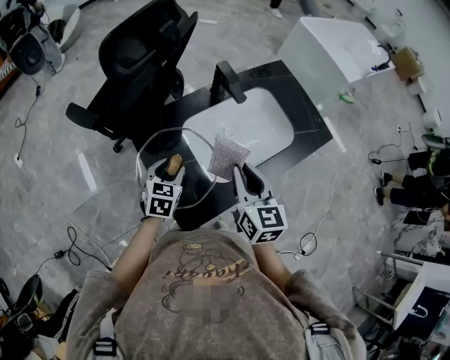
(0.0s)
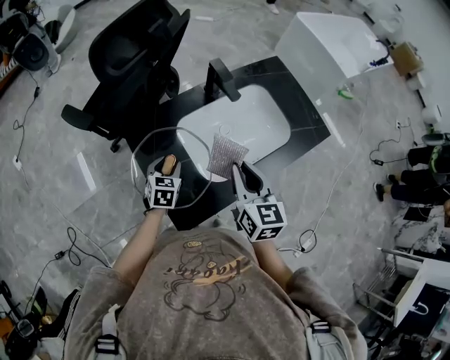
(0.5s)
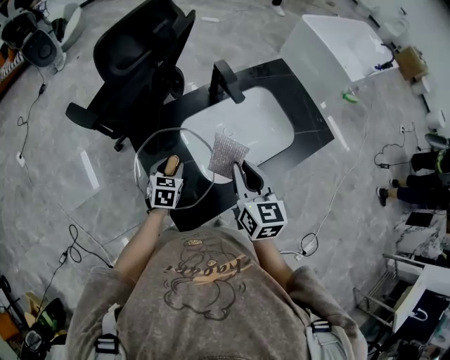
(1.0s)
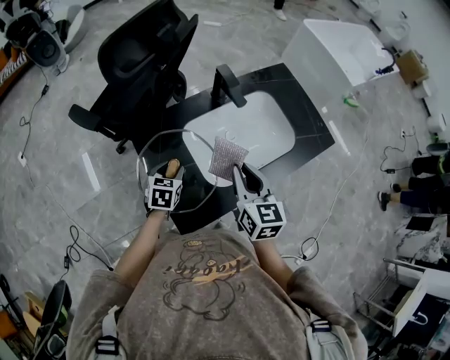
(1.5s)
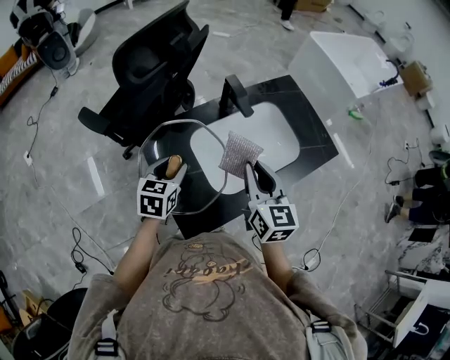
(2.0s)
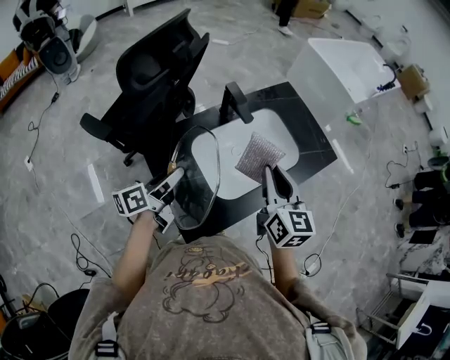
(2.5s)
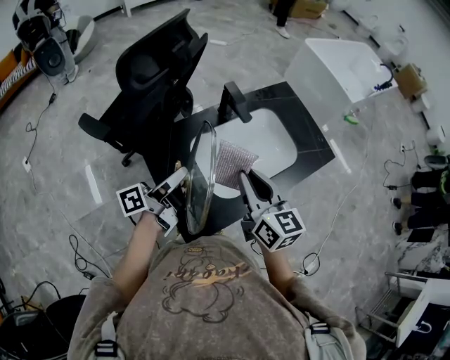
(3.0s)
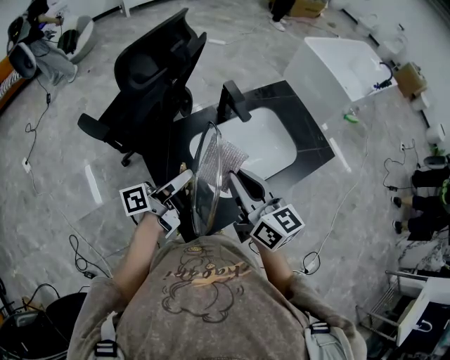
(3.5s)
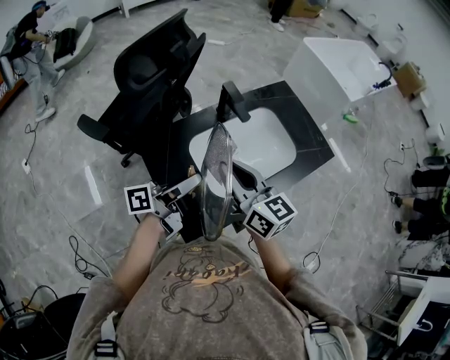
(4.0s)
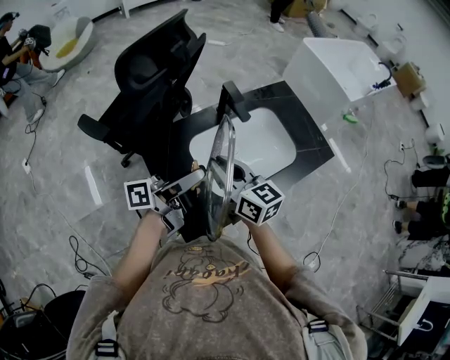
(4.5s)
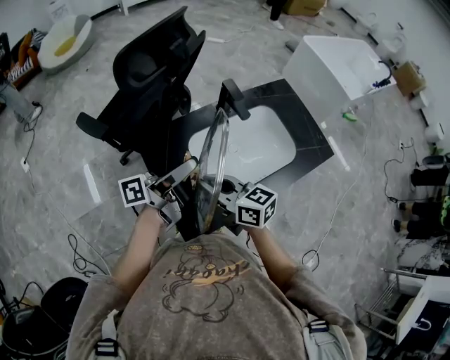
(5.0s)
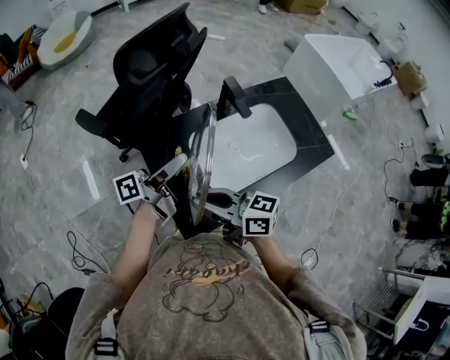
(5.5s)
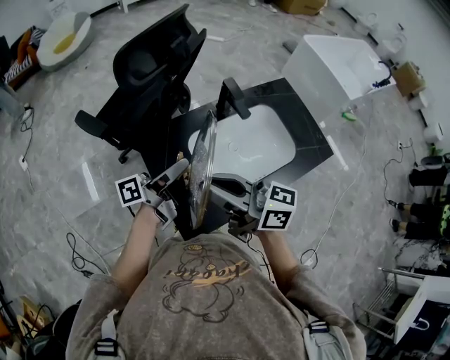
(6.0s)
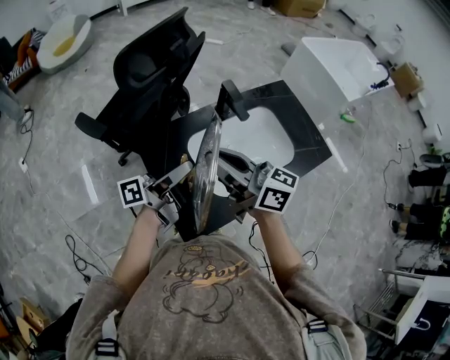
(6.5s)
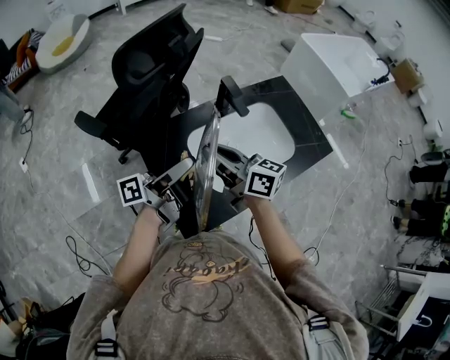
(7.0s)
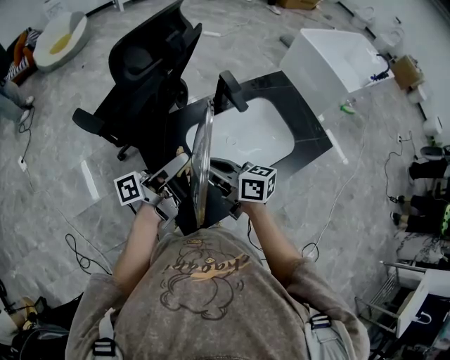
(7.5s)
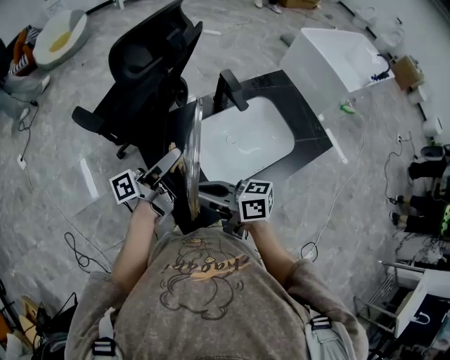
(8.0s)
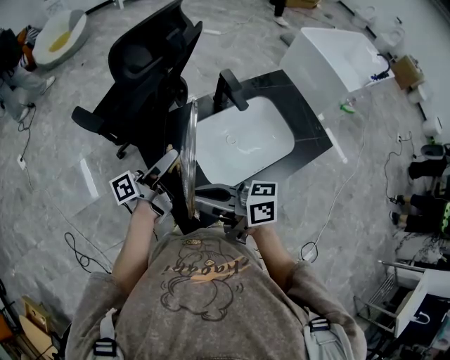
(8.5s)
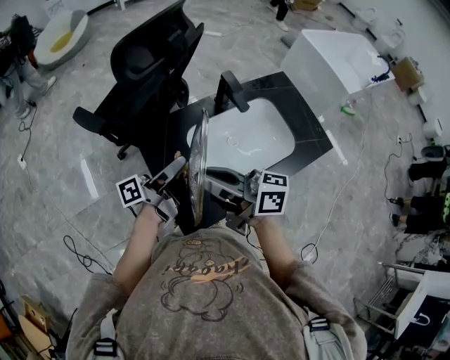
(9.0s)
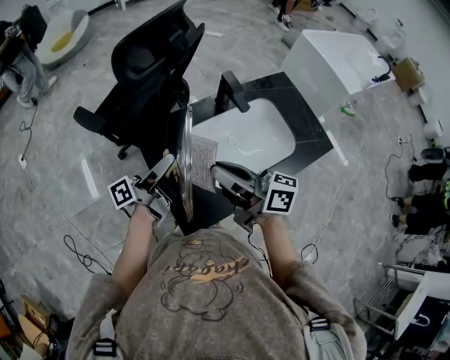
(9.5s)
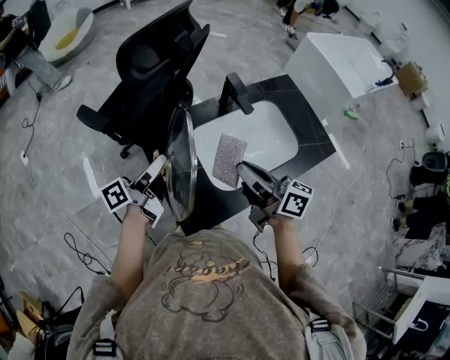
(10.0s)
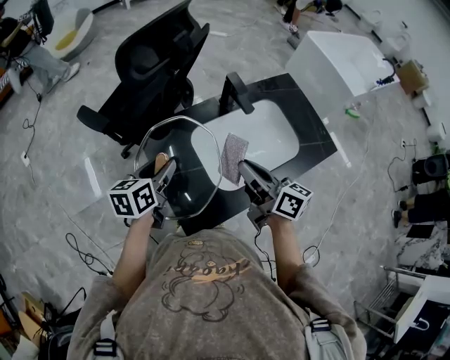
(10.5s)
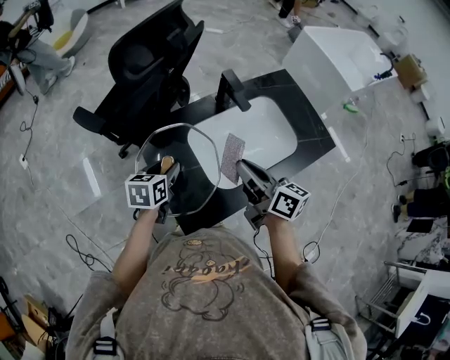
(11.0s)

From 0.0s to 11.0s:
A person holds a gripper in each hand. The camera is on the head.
From 0.0s to 2.0s: The left gripper travels upward by about 5 cm.
From 2.0s to 3.5s: The left gripper travels upward by approximately 10 cm, and points its fingers roughly 40 degrees further upward, while the right gripper moves upward, approximately 5 cm, and changes its angle by about 20 degrees.
From 3.5s to 5.5s: The right gripper moves to the left, backward and downward, some 10 cm, and turns by about 40 degrees.
From 5.5s to 7.5s: The right gripper travels forward by some 10 cm, and travels upward and back again, roughly 10 cm each way.
From 7.5s to 9.0s: The right gripper is displaced upward by some 10 cm.
From 9.0s to 11.0s: The right gripper moves to the right and downward, approximately 15 cm, and changes its angle by about 30 degrees. The left gripper travels downward by about 10 cm, and tilts its fingers approximately 50 degrees downward.

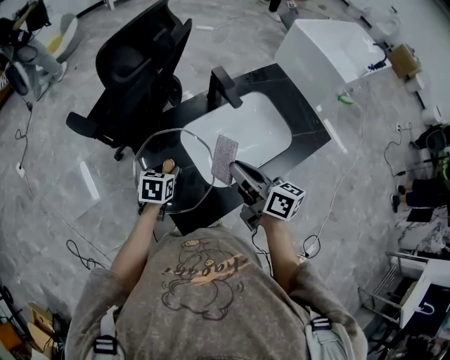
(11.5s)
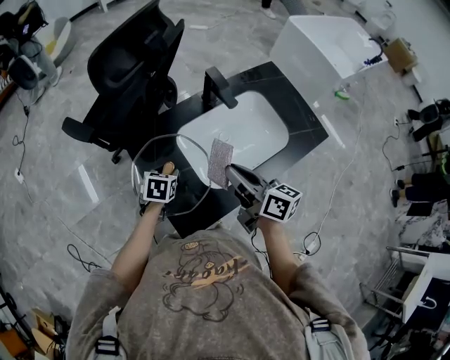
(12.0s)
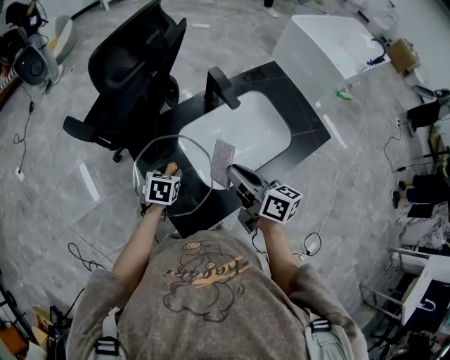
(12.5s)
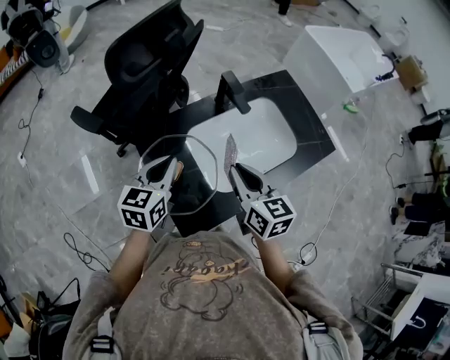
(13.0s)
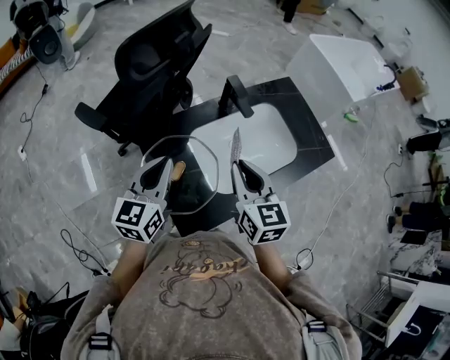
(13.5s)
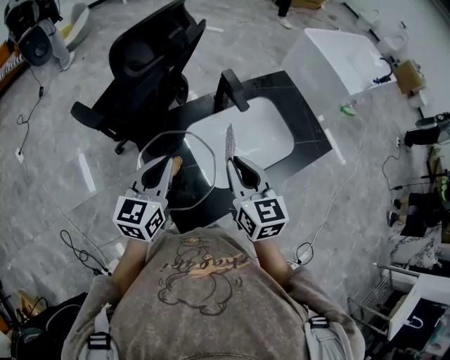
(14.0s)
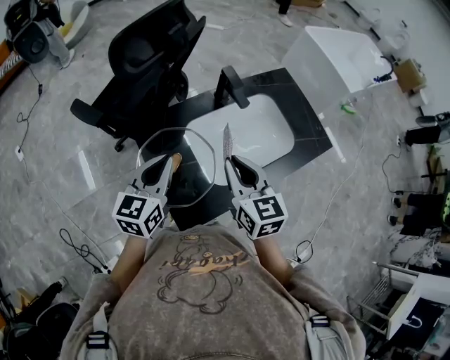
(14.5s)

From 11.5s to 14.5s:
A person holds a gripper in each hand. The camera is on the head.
From 11.5s to 13.0s: The left gripper shifts some 15 cm upward, changes its angle by some 30 degrees, and closes; the right gripper swivels approximately 30 degrees.
From 13.0s to 14.5s: The grippers make only small movements.

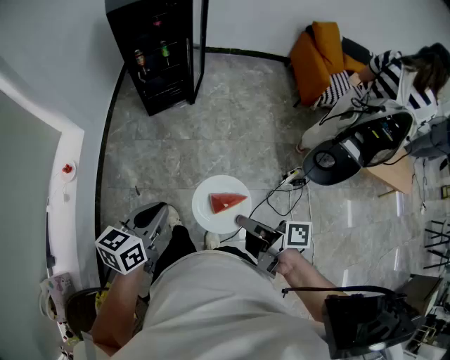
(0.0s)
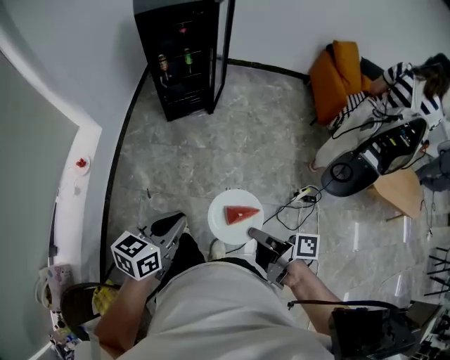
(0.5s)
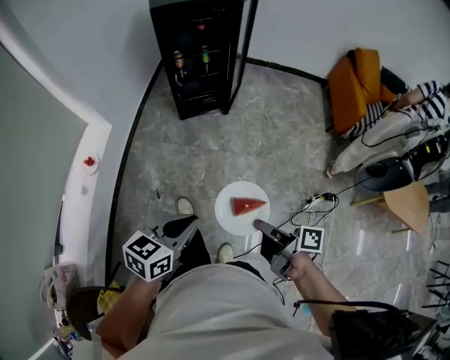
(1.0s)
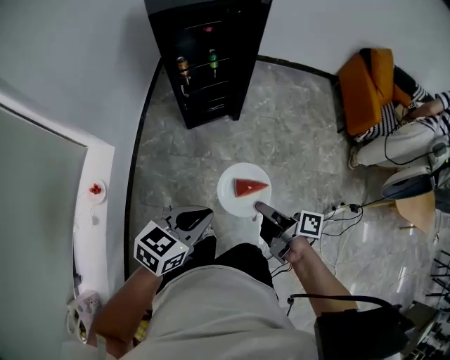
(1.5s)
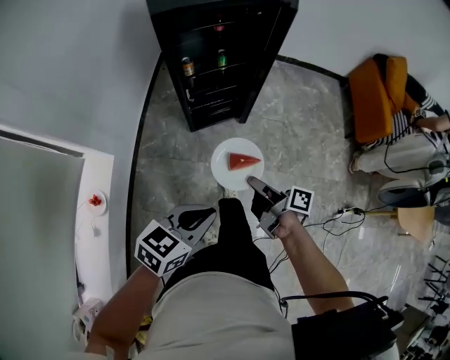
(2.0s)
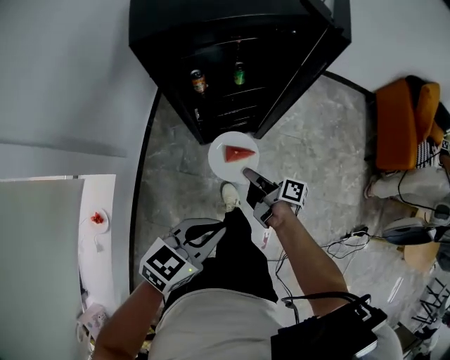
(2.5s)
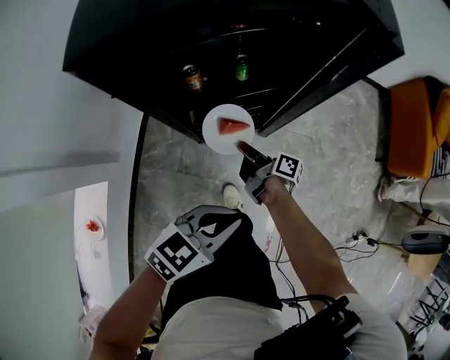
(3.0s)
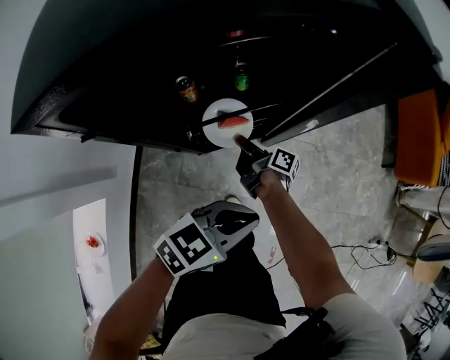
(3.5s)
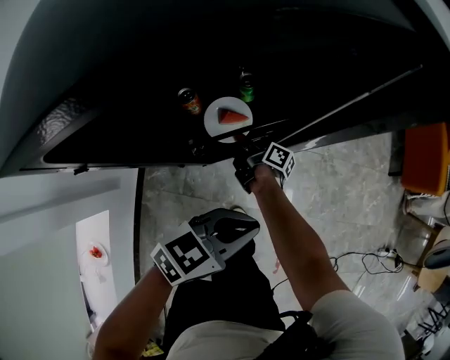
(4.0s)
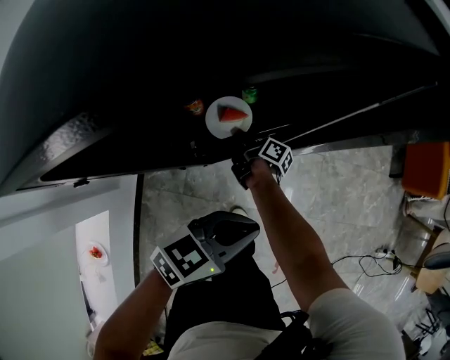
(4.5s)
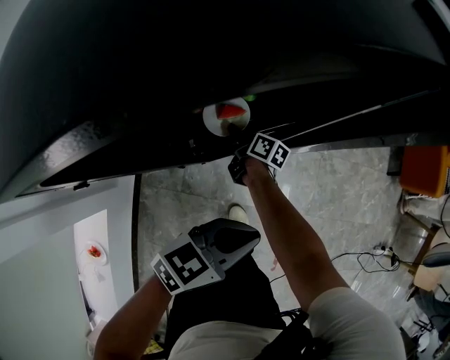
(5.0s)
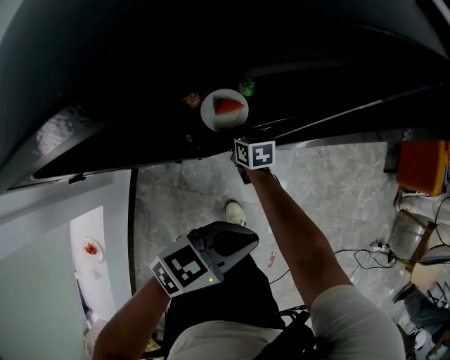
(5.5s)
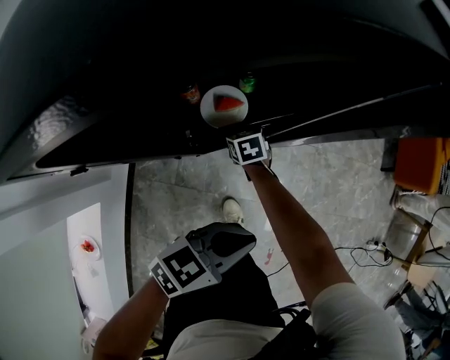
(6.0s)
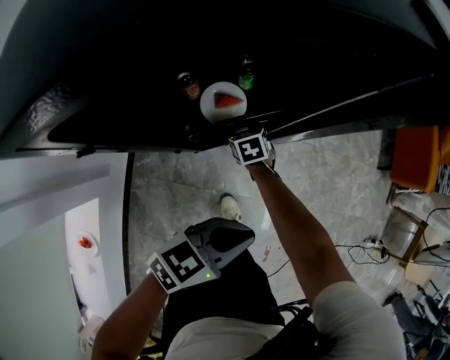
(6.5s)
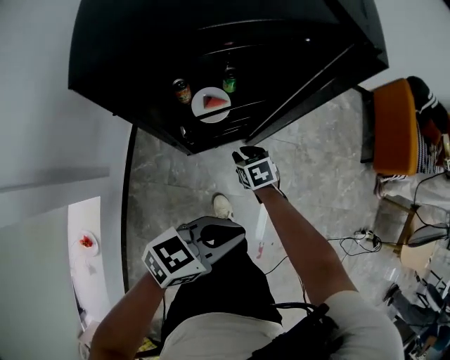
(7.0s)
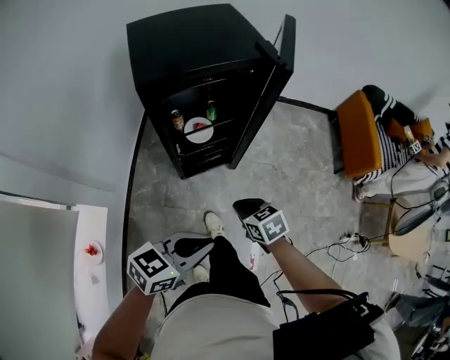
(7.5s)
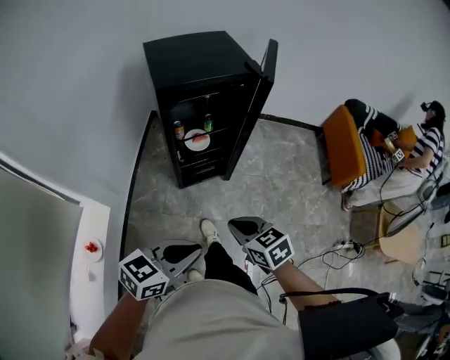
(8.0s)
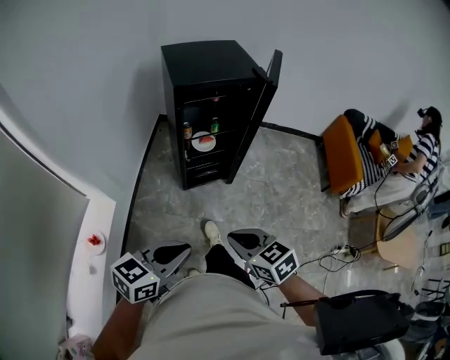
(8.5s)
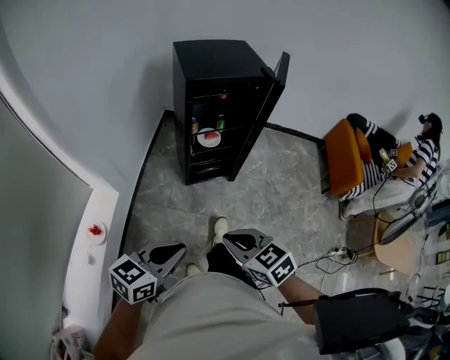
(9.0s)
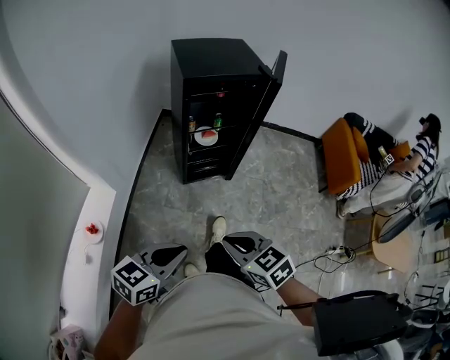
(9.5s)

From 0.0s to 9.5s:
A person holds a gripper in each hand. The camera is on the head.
From 0.0s to 2.0s: Both grippers move forward, about 40 cm.
From 2.0s to 4.0s: The grippers both shift forward and downward by approximately 50 cm.
From 4.0s to 5.5s: The right gripper twists about 60 degrees counterclockwise, seen from behind, and opens.
From 5.5s to 7.5s: The left gripper goes roughly 30 cm backward and upward. The right gripper is displaced backward, upward and to the right by approximately 50 cm, and closes up.
From 7.5s to 9.5s: The left gripper shifts some 20 cm backward and to the left. The right gripper travels backward and upward by roughly 30 cm.

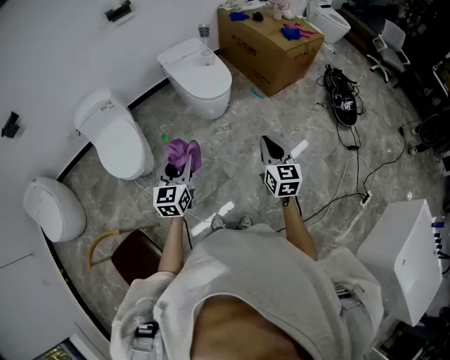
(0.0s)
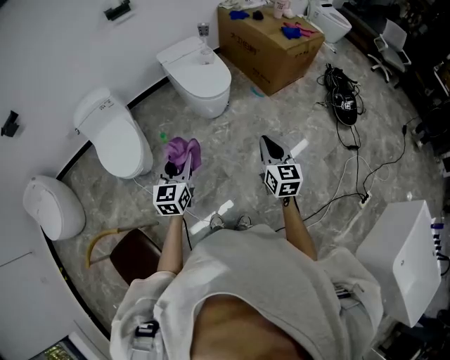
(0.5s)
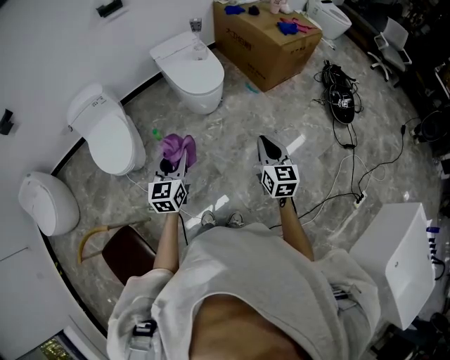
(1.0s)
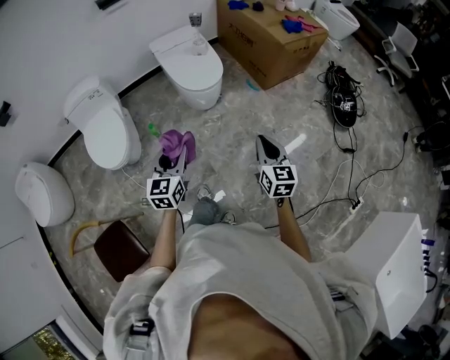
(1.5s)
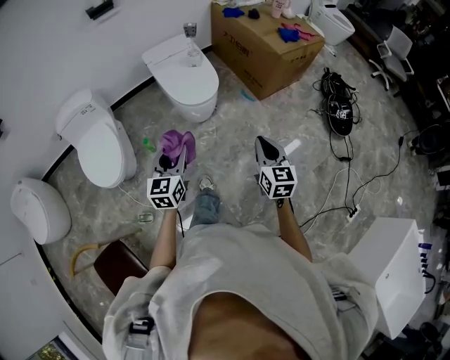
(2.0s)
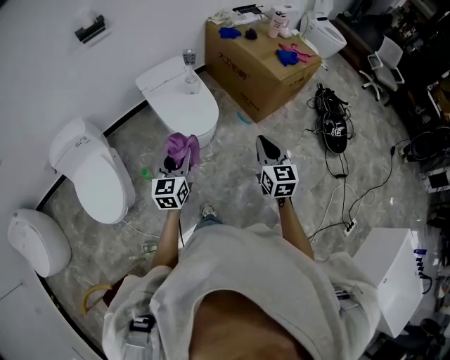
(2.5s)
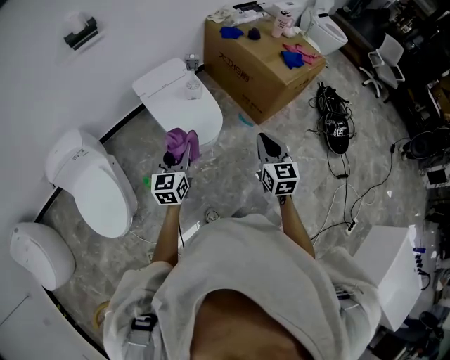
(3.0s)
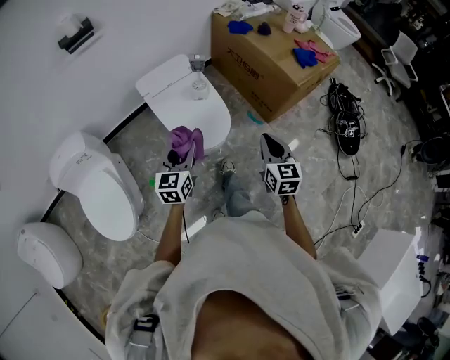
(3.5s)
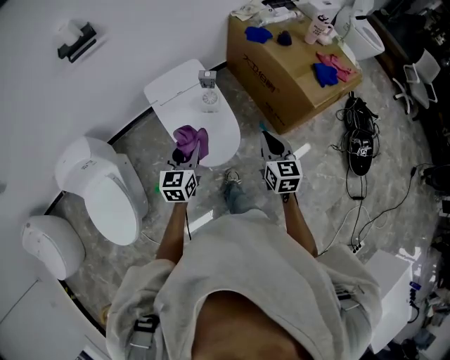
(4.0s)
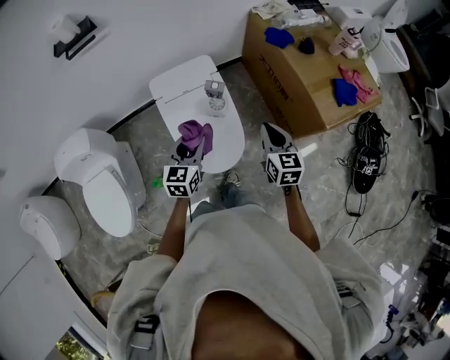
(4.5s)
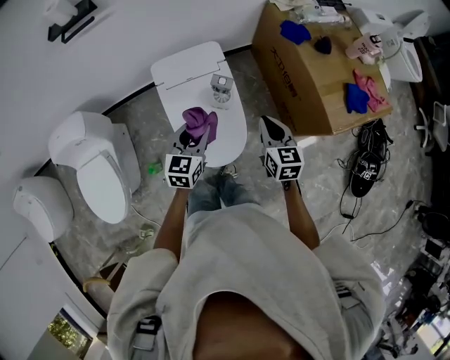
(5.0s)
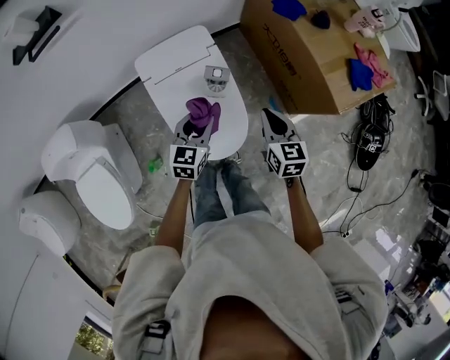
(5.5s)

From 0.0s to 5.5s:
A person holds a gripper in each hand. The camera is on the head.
From 0.0s to 2.0s: The grippers both shift forward and to the right by roughly 15 cm.
From 2.0s to 3.5s: Both grippers travel together forward, some 30 cm.
From 3.5s to 5.5s: The right gripper travels forward by roughly 30 cm. The left gripper travels forward and downward by approximately 30 cm.
